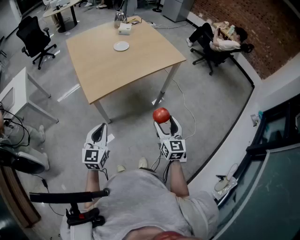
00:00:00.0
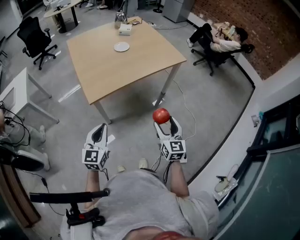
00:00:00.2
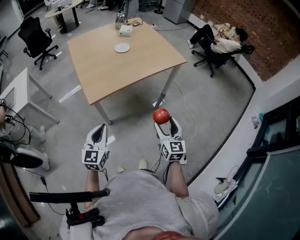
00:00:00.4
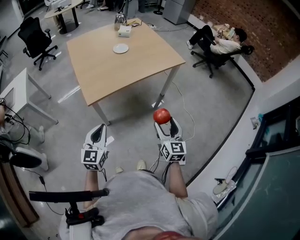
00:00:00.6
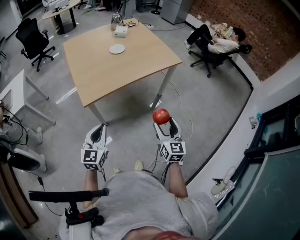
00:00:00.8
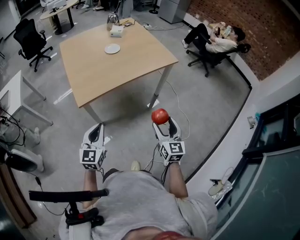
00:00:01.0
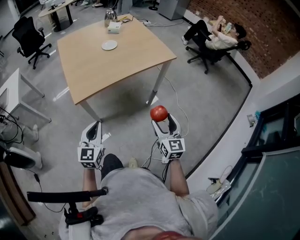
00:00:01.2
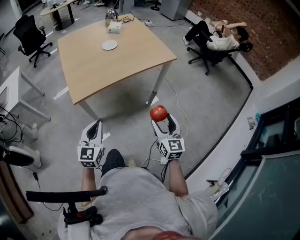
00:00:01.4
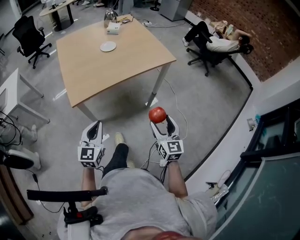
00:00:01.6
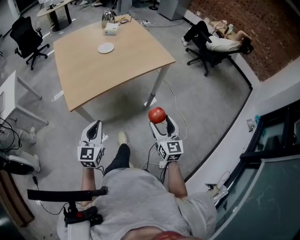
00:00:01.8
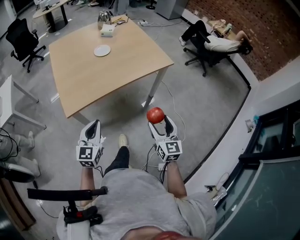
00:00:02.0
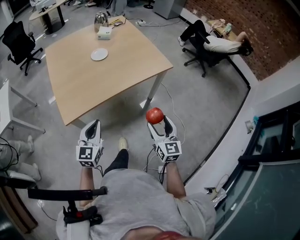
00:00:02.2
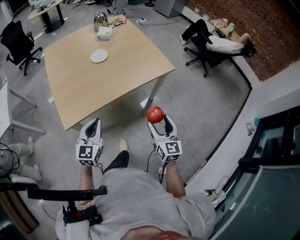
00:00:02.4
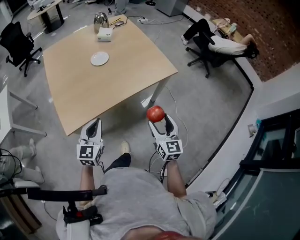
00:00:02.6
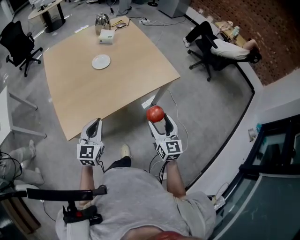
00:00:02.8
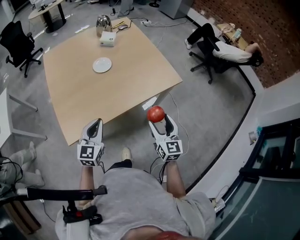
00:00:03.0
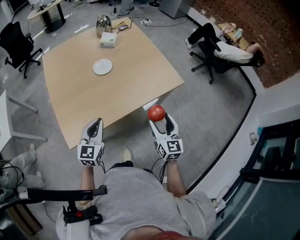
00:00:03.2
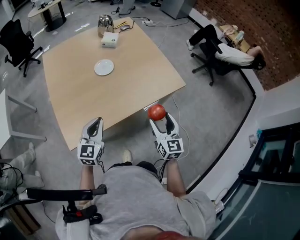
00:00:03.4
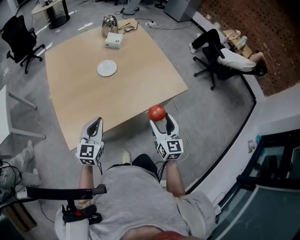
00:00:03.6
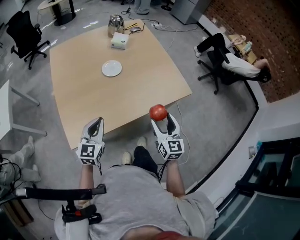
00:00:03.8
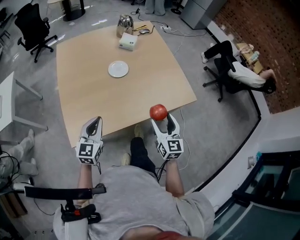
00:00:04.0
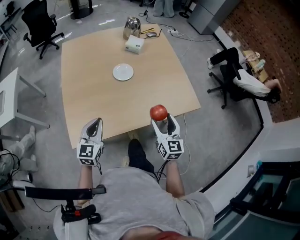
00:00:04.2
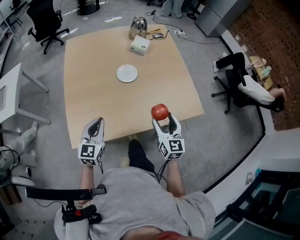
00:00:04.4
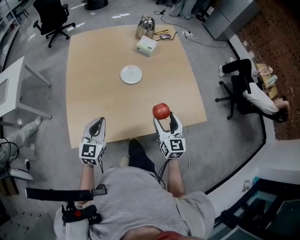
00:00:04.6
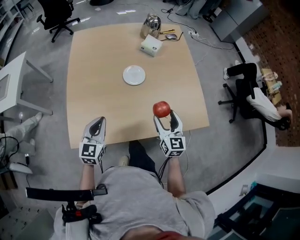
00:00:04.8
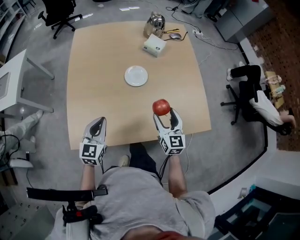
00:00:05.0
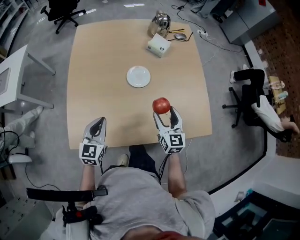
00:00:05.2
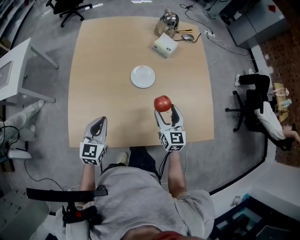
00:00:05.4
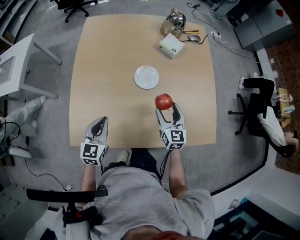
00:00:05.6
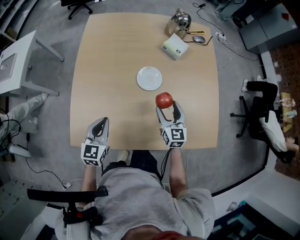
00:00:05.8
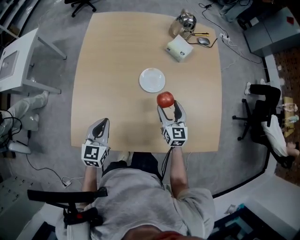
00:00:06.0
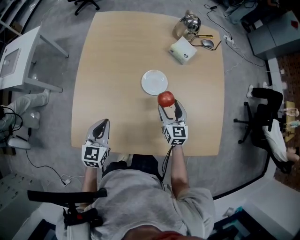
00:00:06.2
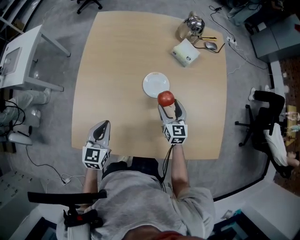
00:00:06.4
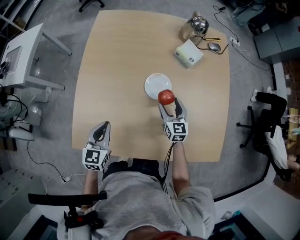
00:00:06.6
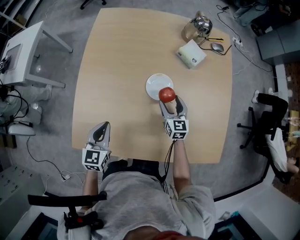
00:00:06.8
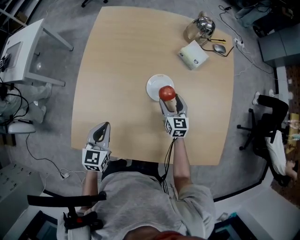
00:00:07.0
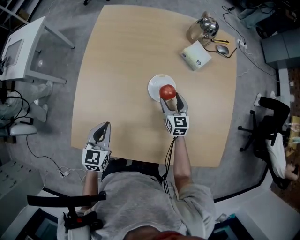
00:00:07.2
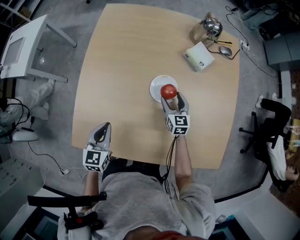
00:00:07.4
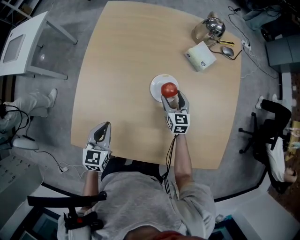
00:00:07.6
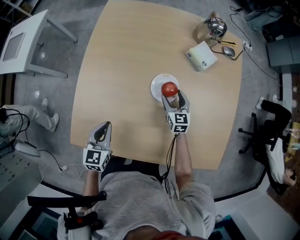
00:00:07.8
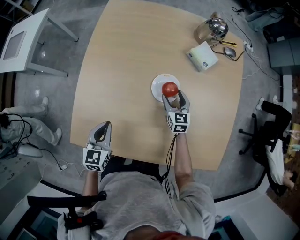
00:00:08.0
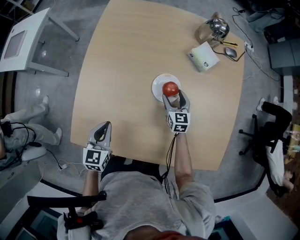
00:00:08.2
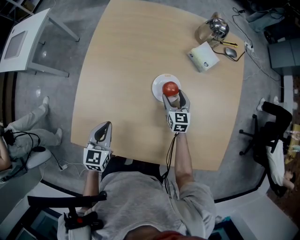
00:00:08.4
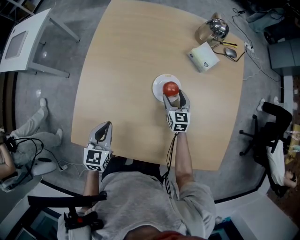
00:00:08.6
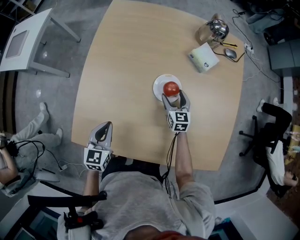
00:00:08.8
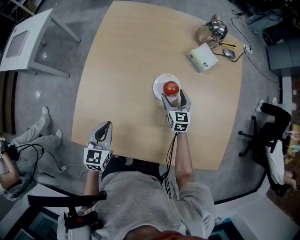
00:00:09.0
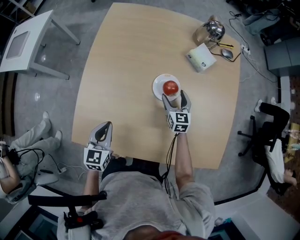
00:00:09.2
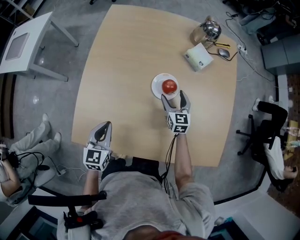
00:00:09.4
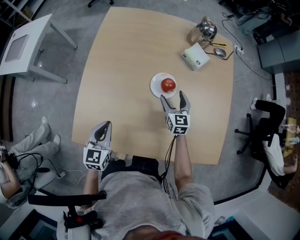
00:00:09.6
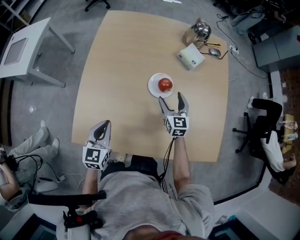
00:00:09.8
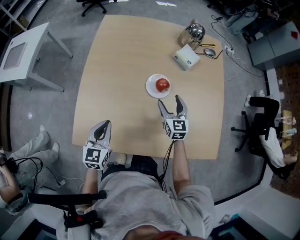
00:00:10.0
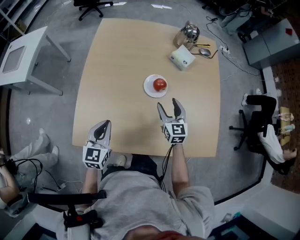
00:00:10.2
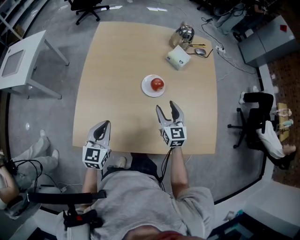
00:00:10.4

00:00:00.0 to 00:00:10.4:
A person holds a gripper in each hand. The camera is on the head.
00:00:00.0 to 00:00:01.4: The grippers both shift to the right by approximately 10 cm.
00:00:01.4 to 00:00:03.0: Both grippers travel together forward, roughly 30 cm.
00:00:03.0 to 00:00:04.4: The left gripper travels forward and to the left by about 15 cm. Meanwhile the right gripper shifts about 20 cm forward.
00:00:04.4 to 00:00:06.0: The right gripper is displaced forward and downward by about 25 cm. Meanwhile the left gripper goes some 10 cm forward and downward.
00:00:06.0 to 00:00:07.4: The left gripper shifts by about 5 cm, while the right gripper is displaced forward and downward by approximately 15 cm.
00:00:07.4 to 00:00:09.0: The grippers stay close to where they were, moving slightly.
00:00:09.0 to 00:00:10.4: The right gripper heads upward and backward, covering about 20 cm. Meanwhile the left gripper heads upward, covering some 5 cm.

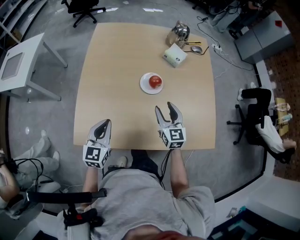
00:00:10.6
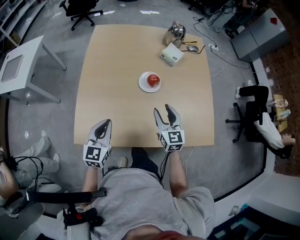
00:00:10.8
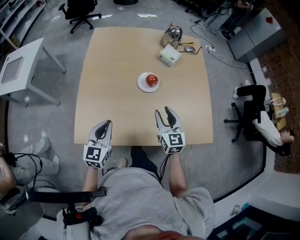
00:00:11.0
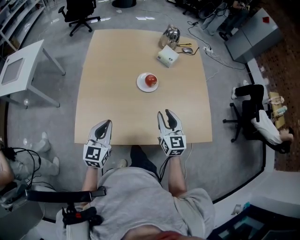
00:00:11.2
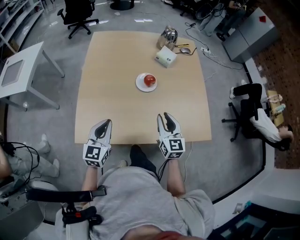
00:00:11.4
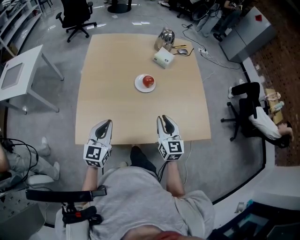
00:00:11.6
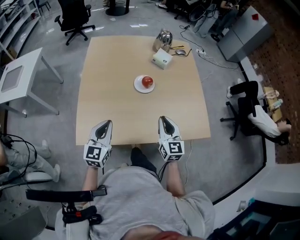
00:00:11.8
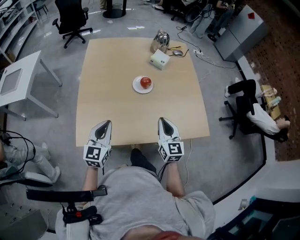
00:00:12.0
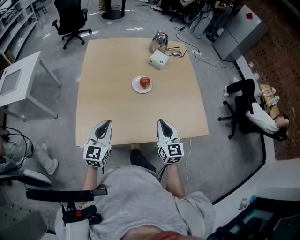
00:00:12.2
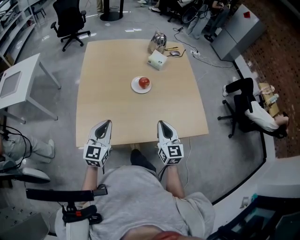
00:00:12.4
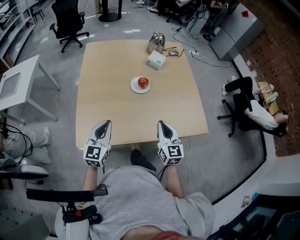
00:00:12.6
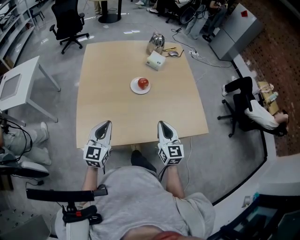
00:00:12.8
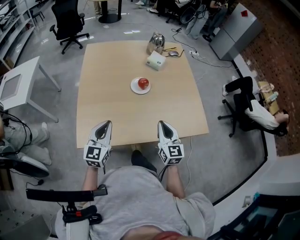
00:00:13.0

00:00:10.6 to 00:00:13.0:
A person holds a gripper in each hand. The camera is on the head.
00:00:10.6 to 00:00:11.8: The right gripper is displaced backward and upward by roughly 15 cm, and closes its fingers; the left gripper travels backward and upward by approximately 10 cm.
00:00:11.8 to 00:00:13.0: There are only small adjustments of the grippers.

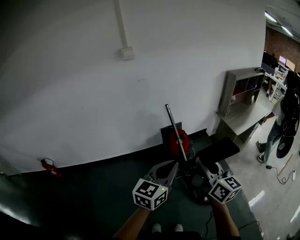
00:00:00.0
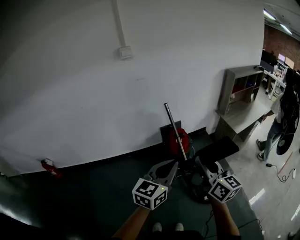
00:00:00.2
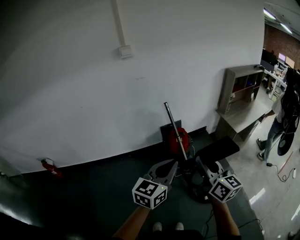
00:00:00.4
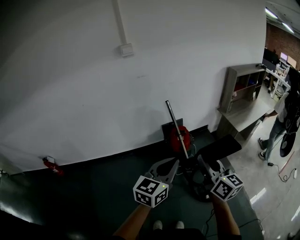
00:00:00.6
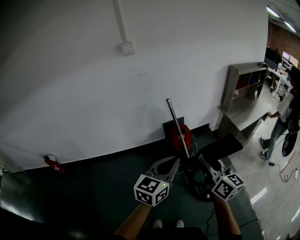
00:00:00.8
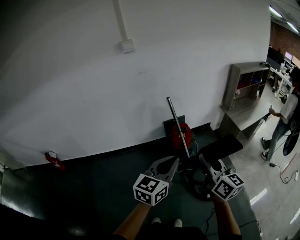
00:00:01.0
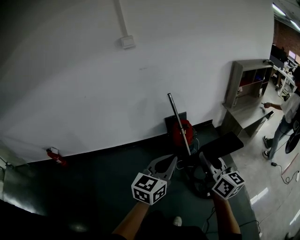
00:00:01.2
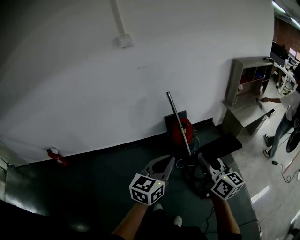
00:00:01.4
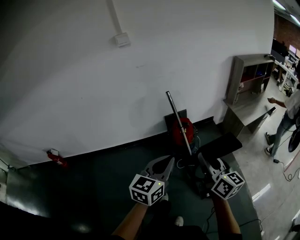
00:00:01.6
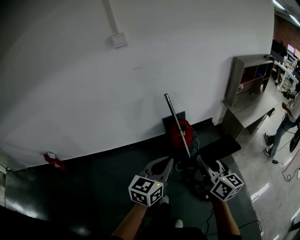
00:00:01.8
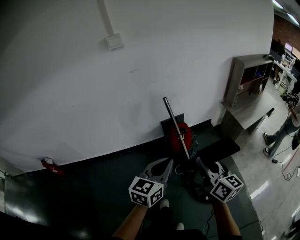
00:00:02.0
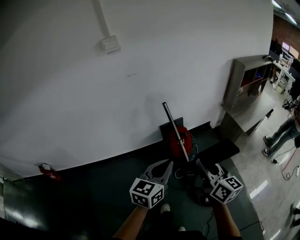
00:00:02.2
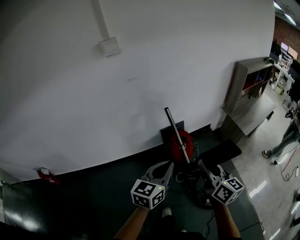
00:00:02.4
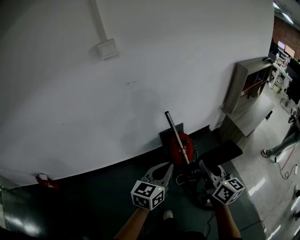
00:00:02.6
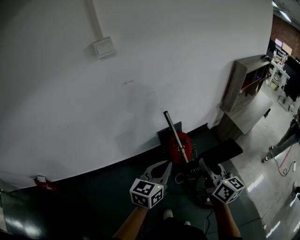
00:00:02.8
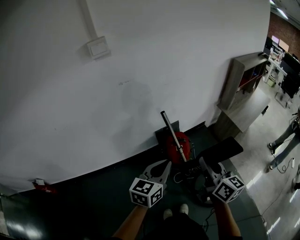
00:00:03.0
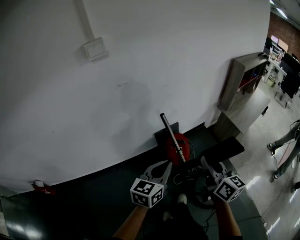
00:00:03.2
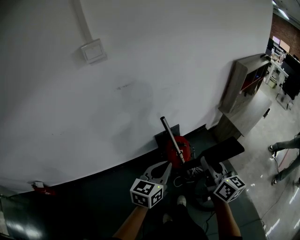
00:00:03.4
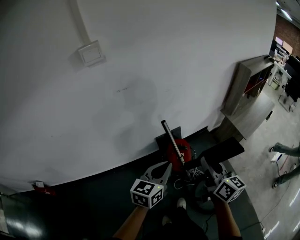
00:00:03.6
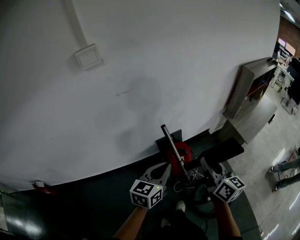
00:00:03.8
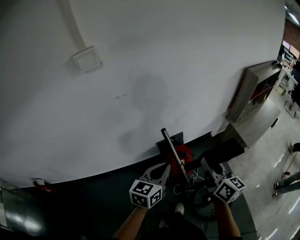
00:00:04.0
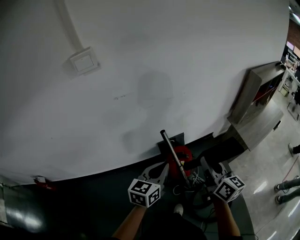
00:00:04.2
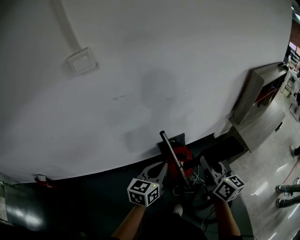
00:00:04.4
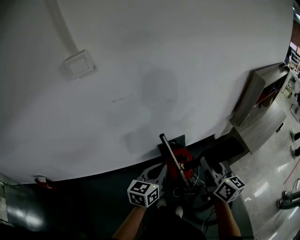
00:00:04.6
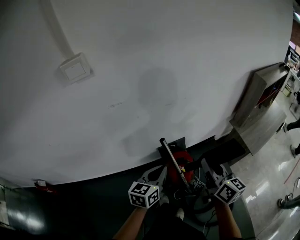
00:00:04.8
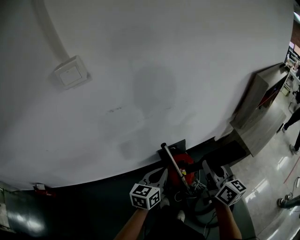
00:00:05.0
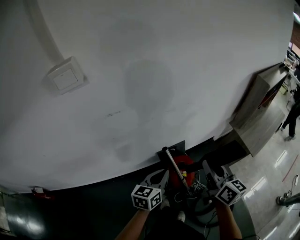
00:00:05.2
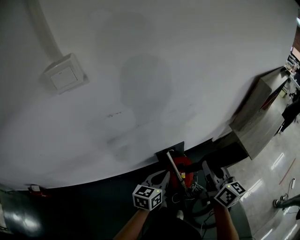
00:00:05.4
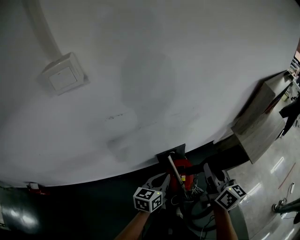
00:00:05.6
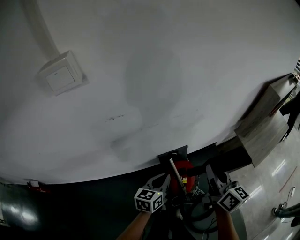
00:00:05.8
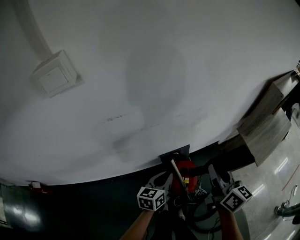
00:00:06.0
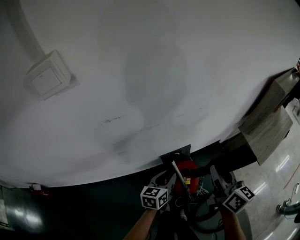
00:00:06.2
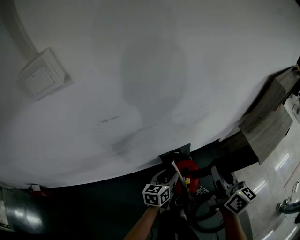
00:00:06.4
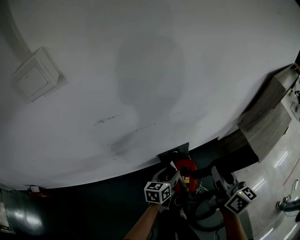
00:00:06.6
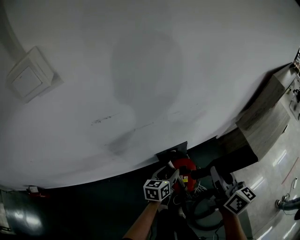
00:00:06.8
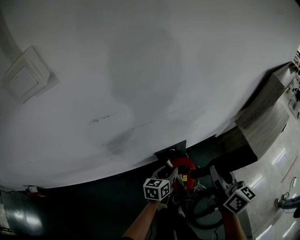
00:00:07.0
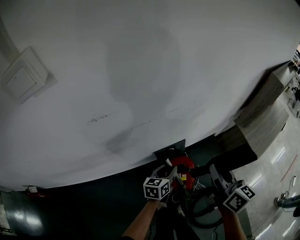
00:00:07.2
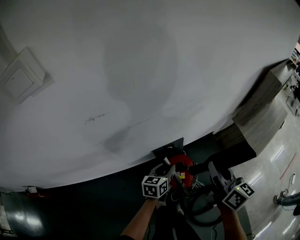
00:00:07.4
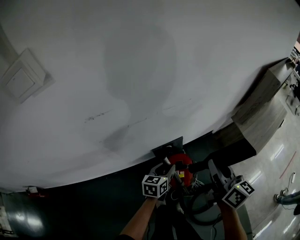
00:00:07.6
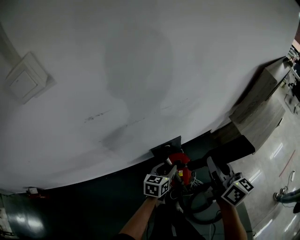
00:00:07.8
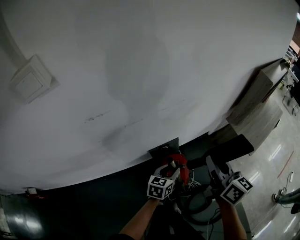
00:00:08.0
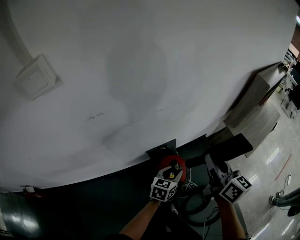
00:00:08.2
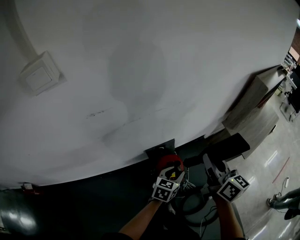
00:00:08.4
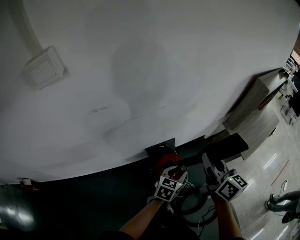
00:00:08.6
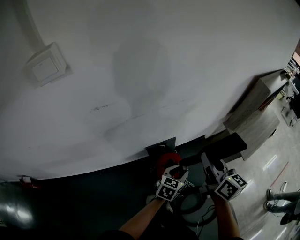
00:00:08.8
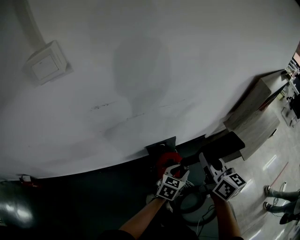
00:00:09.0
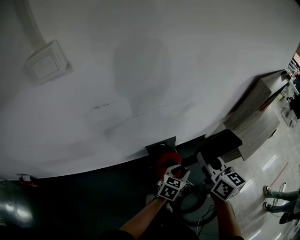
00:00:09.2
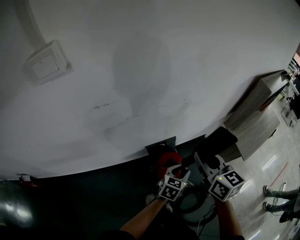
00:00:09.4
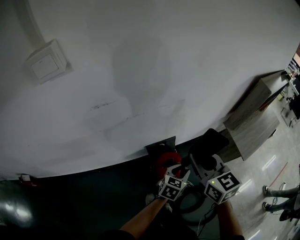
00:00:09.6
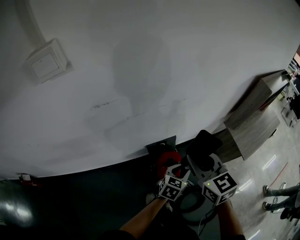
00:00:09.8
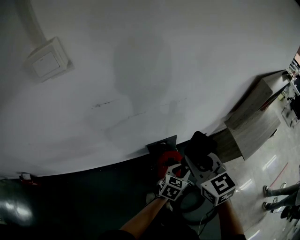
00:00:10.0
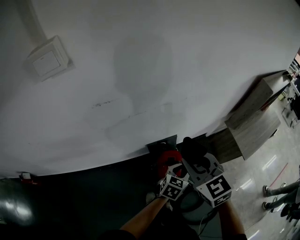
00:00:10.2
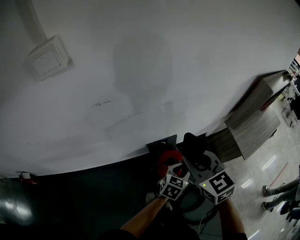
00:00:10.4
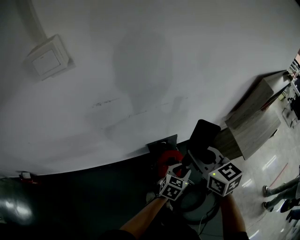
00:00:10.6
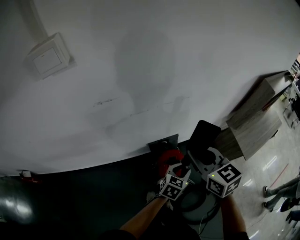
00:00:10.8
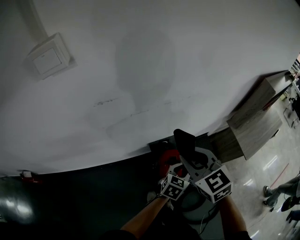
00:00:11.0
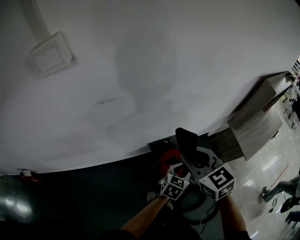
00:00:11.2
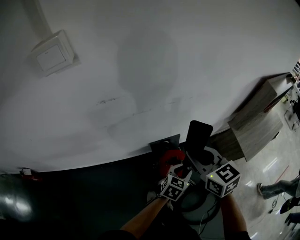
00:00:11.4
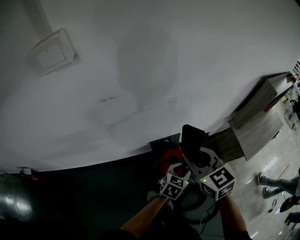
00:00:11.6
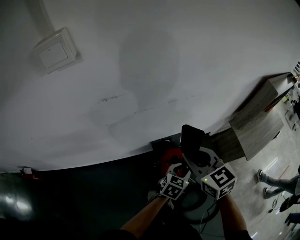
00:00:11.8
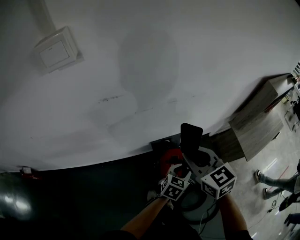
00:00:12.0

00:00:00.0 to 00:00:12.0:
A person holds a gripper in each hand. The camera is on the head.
00:00:00.0 to 00:00:01.6: The left gripper shifts by approximately 5 cm; the right gripper goes approximately 5 cm downward.
00:00:01.6 to 00:00:03.0: The two grippers go roughly 25 cm forward.
00:00:03.0 to 00:00:04.4: The grippers both shift forward by roughly 20 cm.
00:00:04.4 to 00:00:06.0: The right gripper shifts approximately 15 cm forward. The left gripper travels forward and downward by approximately 20 cm.
00:00:06.0 to 00:00:07.6: The left gripper shifts roughly 10 cm downward, and opens up.
00:00:07.6 to 00:00:09.0: The left gripper heads to the right and upward, covering about 15 cm.
00:00:09.0 to 00:00:10.4: The right gripper shifts roughly 10 cm to the left, and changes its angle by some 40 degrees.
00:00:10.4 to 00:00:12.0: The grippers move only a little.
